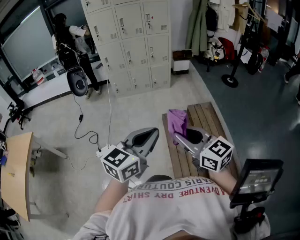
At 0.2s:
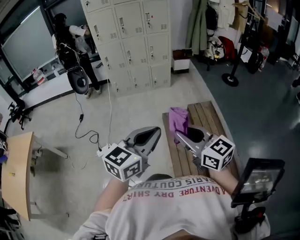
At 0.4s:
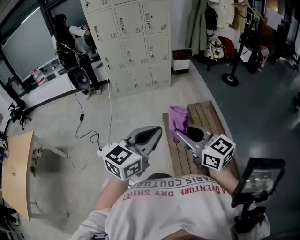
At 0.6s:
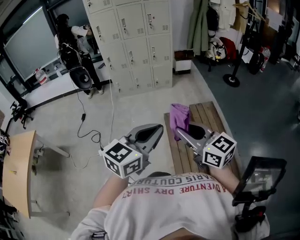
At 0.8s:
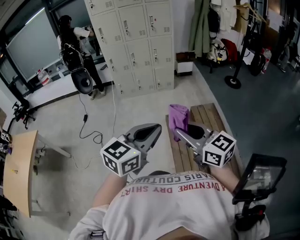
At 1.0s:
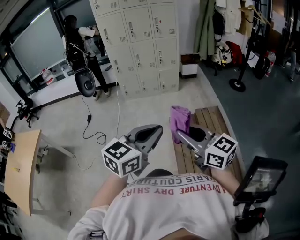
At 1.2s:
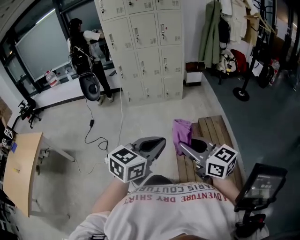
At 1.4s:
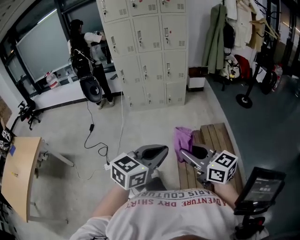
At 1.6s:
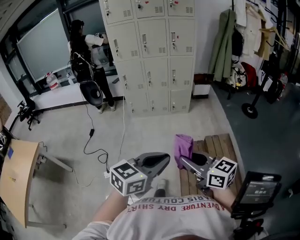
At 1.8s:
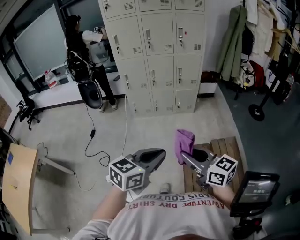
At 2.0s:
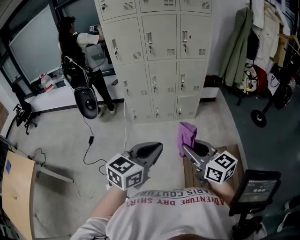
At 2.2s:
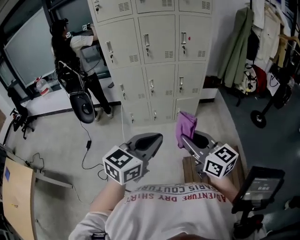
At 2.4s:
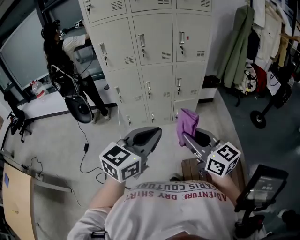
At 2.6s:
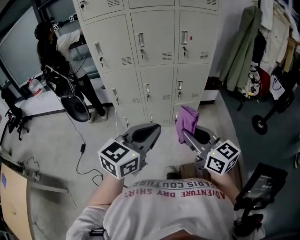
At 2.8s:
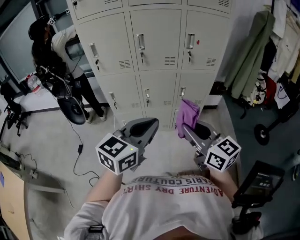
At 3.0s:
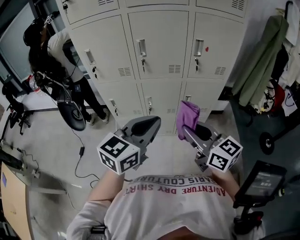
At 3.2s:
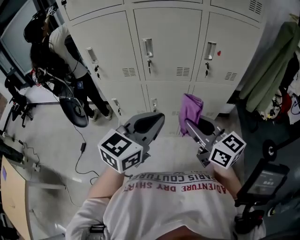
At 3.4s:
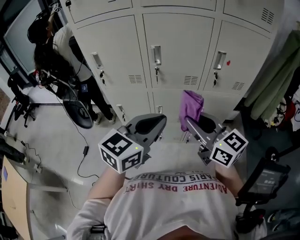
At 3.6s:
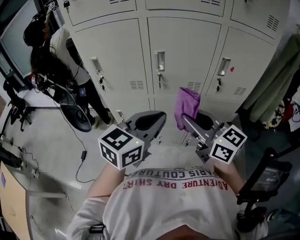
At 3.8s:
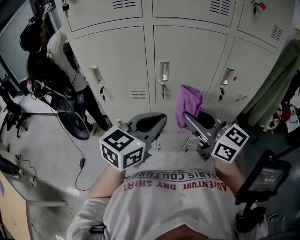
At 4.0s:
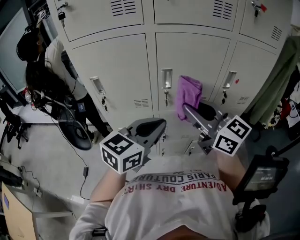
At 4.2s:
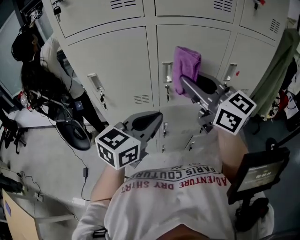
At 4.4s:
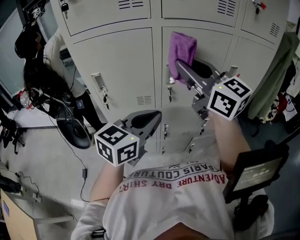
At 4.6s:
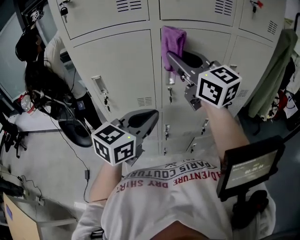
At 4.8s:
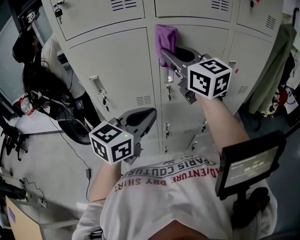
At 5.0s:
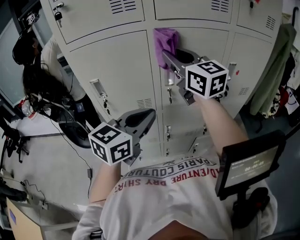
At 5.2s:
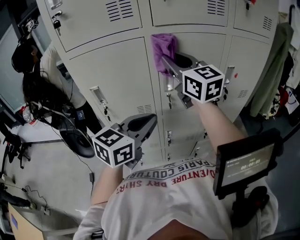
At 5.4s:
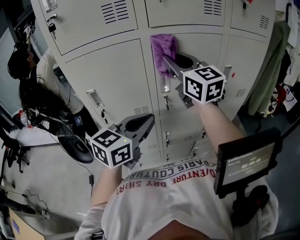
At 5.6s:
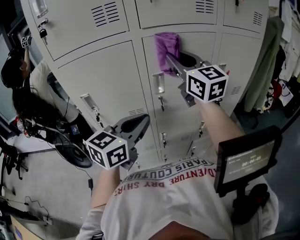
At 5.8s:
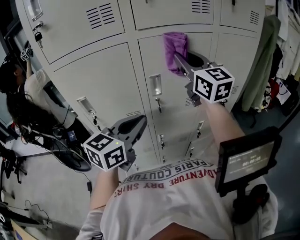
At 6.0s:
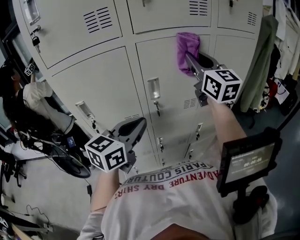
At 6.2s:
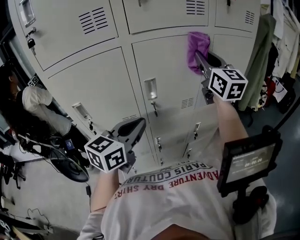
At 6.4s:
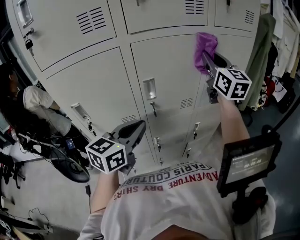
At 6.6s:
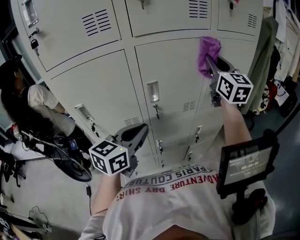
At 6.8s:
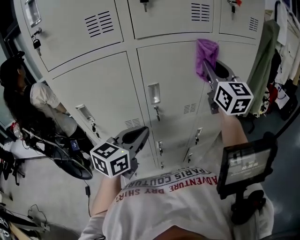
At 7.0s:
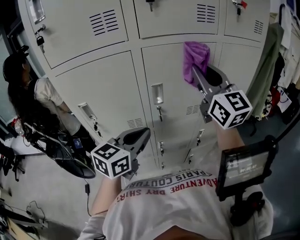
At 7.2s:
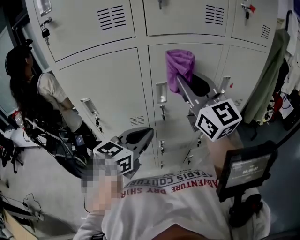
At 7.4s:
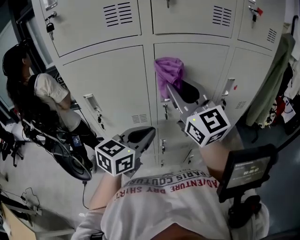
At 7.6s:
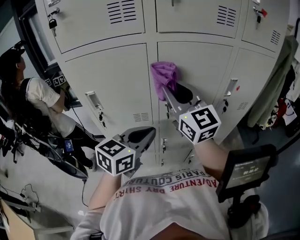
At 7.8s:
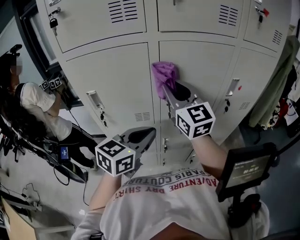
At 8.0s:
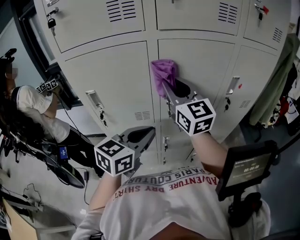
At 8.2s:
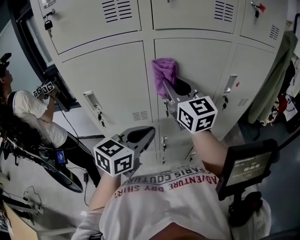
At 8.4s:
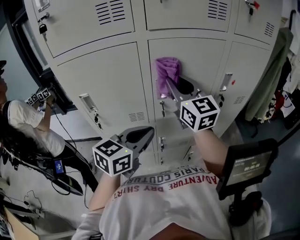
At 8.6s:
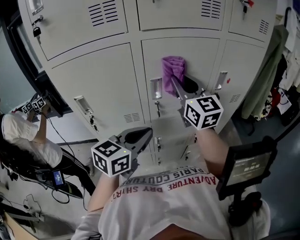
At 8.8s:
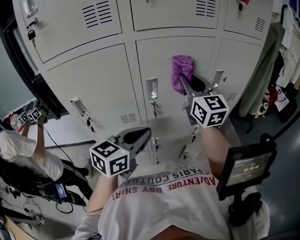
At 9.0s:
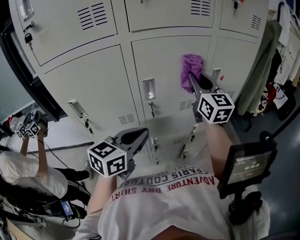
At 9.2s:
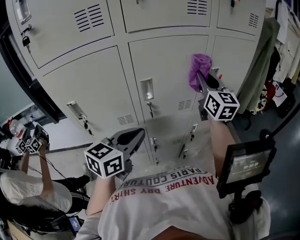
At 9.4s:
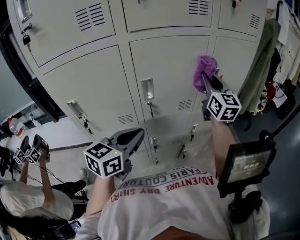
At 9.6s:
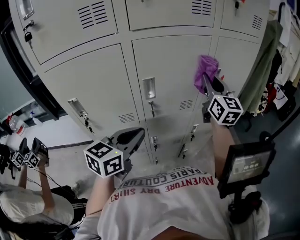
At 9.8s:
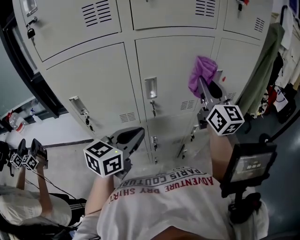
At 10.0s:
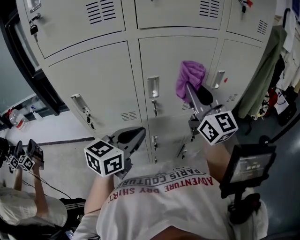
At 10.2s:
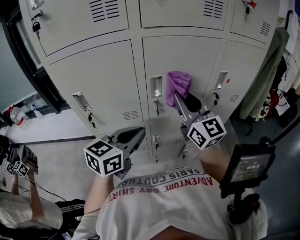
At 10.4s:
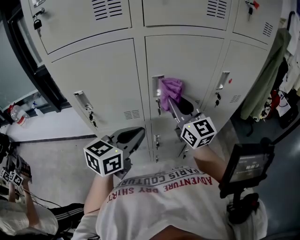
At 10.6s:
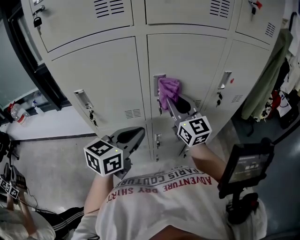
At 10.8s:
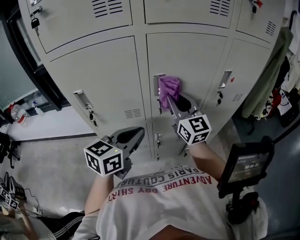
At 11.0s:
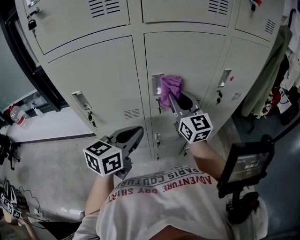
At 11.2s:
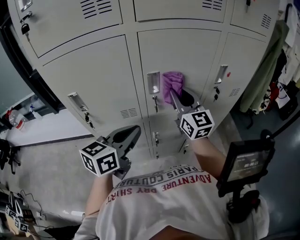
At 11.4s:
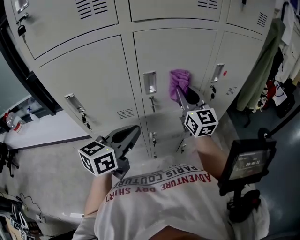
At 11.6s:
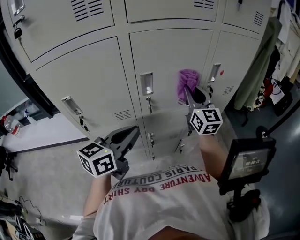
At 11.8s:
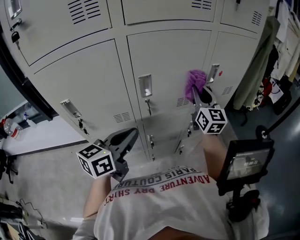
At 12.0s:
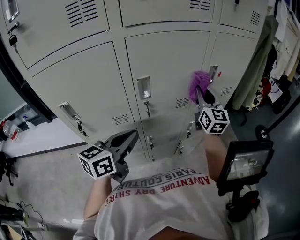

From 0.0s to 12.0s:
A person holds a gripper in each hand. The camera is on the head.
From 0.0s to 1.6s: The two grippers go approximately 15 cm forward.
From 1.6s to 3.0s: The two grippers travel together, forward, some 80 cm.
From 3.0s to 4.4s: The left gripper goes some 25 cm forward and to the left. Meanwhile the right gripper moves forward, upward and to the left, some 40 cm, and swivels about 20 degrees.
From 4.4s to 6.0s: The right gripper goes about 15 cm forward and to the right, and swivels approximately 30 degrees. Meanwhile the left gripper goes about 5 cm forward.
From 6.0s to 7.6s: The right gripper moves to the left, backward and downward, approximately 15 cm.
From 7.6s to 9.0s: The right gripper travels to the right and forward by some 20 cm, and rotates about 20 degrees.
From 9.0s to 10.4s: The right gripper moves to the left, backward and downward, roughly 15 cm.
From 10.4s to 12.0s: The right gripper goes some 20 cm to the right and forward, and changes its angle by about 30 degrees.

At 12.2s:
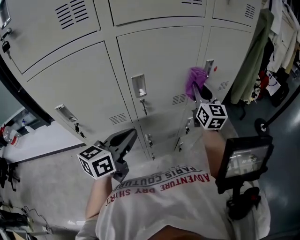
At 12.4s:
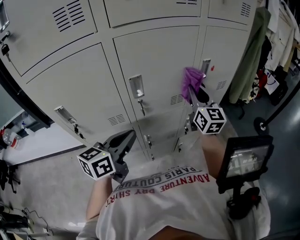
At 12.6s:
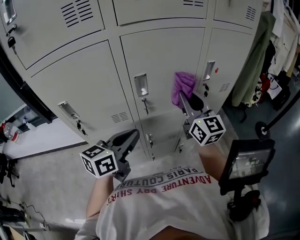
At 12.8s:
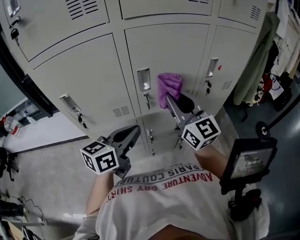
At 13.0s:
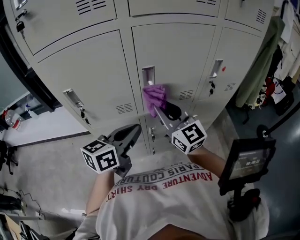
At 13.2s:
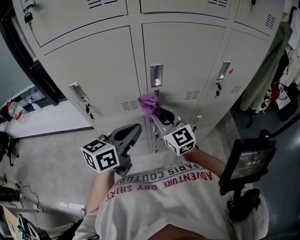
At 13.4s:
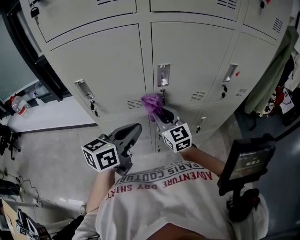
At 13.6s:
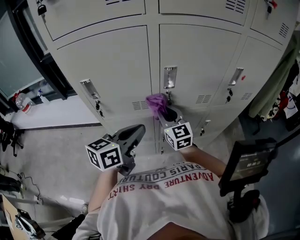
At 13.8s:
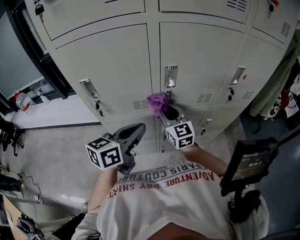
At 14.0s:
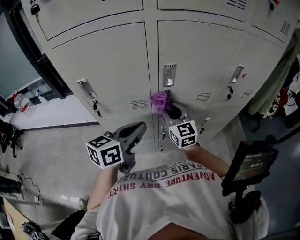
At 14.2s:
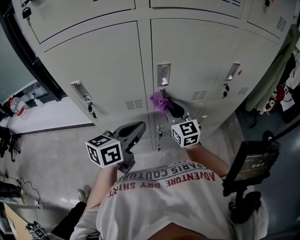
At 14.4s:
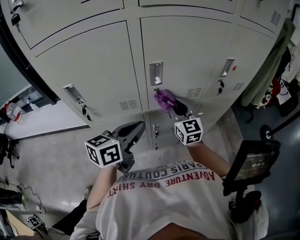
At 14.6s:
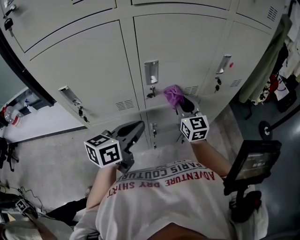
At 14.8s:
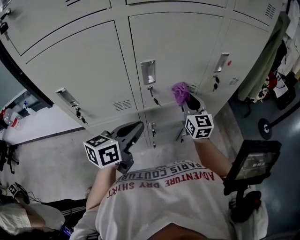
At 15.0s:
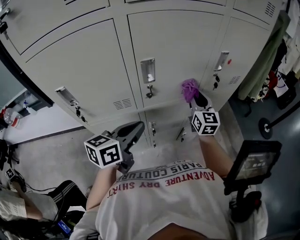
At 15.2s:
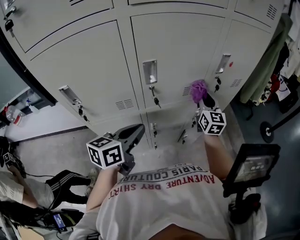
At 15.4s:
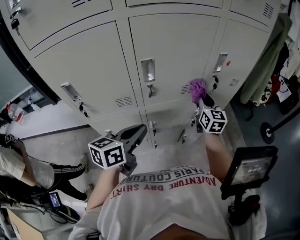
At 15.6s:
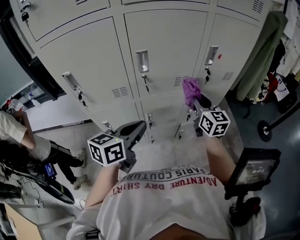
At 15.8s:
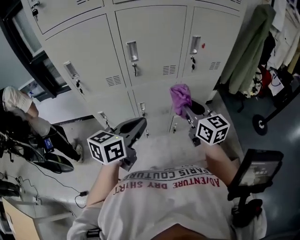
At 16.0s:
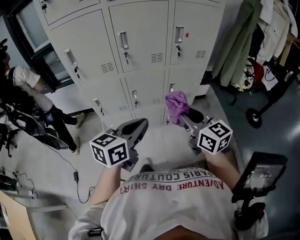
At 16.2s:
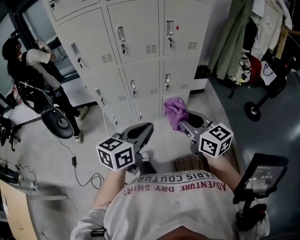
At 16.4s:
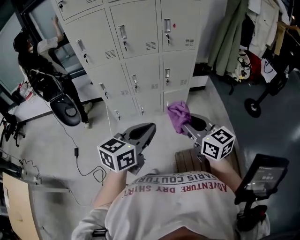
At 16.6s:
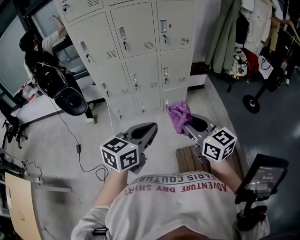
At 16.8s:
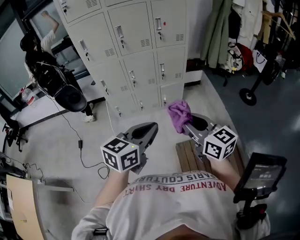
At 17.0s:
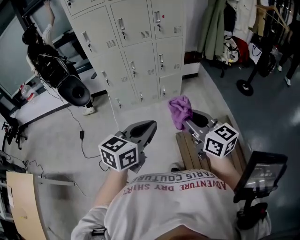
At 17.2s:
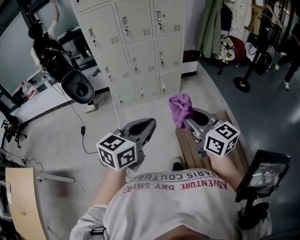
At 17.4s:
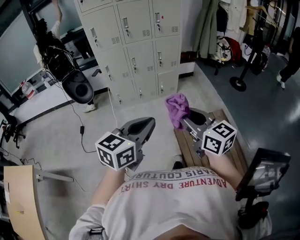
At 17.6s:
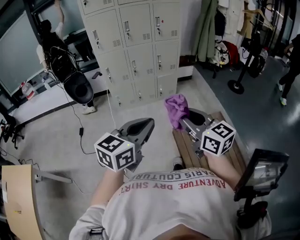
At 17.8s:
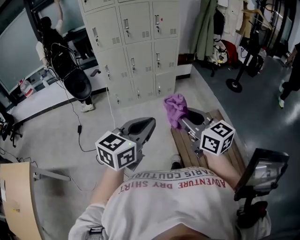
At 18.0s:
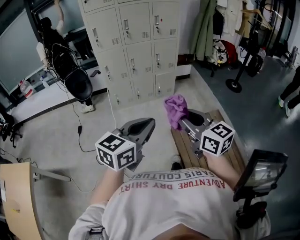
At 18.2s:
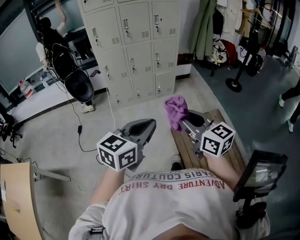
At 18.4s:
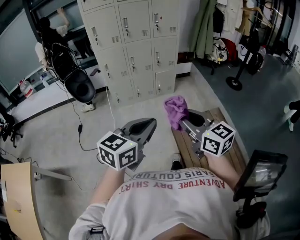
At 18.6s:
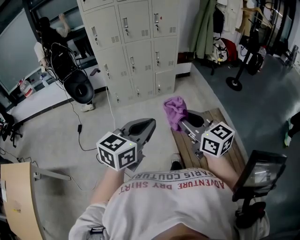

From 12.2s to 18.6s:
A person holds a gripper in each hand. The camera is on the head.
From 12.2s to 13.8s: The left gripper ends up about 5 cm from where it was, while the right gripper shifts about 30 cm to the left and downward, and turns by some 30 degrees.
From 13.8s to 15.4s: The right gripper shifts some 25 cm to the right, and turns by about 30 degrees, while the left gripper is displaced to the right by roughly 5 cm.
From 15.4s to 17.0s: The pair of grippers is taken backward, some 80 cm. The right gripper changes its angle by approximately 30 degrees.
From 17.0s to 18.6s: The two grippers go about 20 cm backward.

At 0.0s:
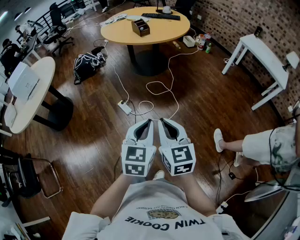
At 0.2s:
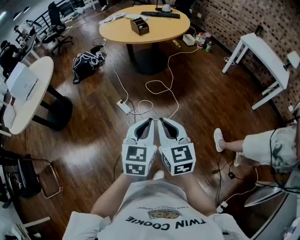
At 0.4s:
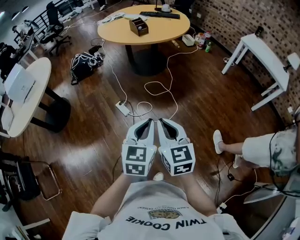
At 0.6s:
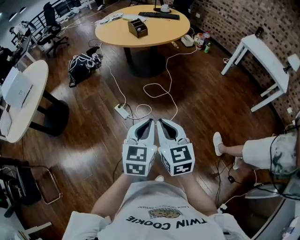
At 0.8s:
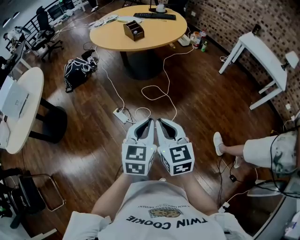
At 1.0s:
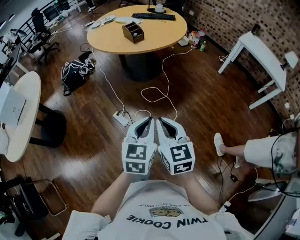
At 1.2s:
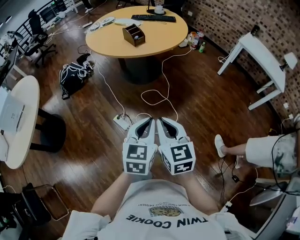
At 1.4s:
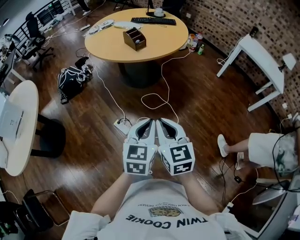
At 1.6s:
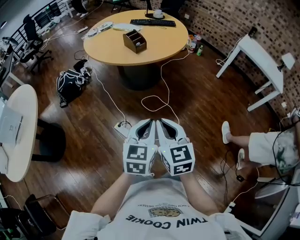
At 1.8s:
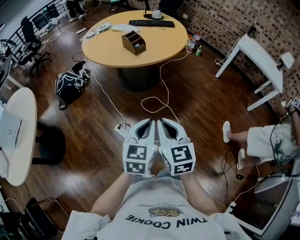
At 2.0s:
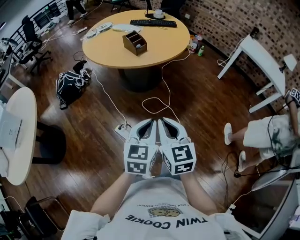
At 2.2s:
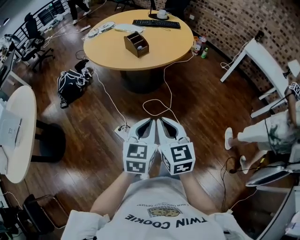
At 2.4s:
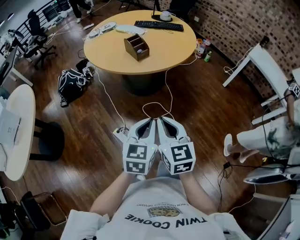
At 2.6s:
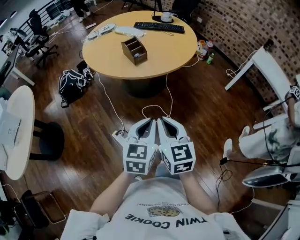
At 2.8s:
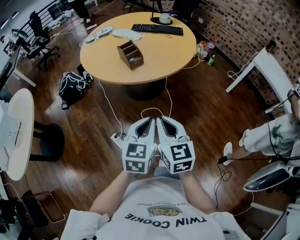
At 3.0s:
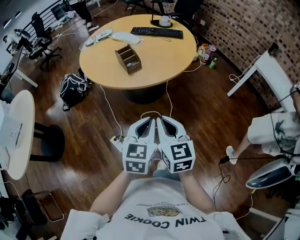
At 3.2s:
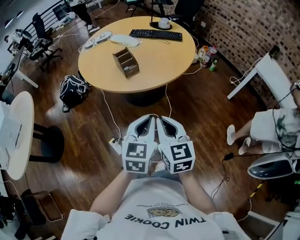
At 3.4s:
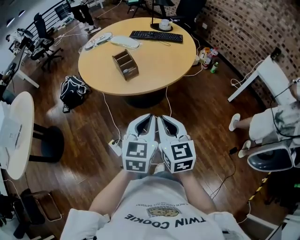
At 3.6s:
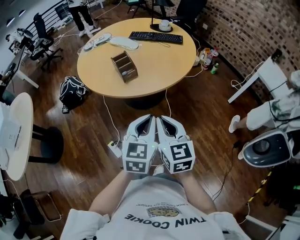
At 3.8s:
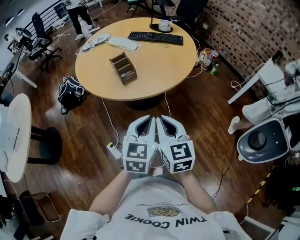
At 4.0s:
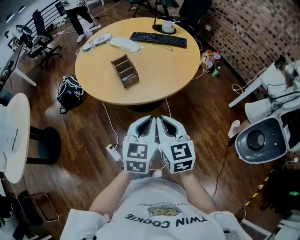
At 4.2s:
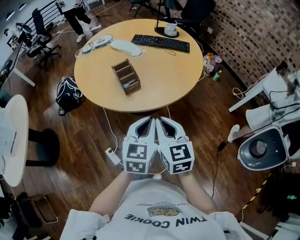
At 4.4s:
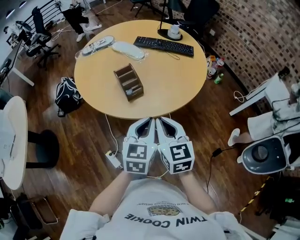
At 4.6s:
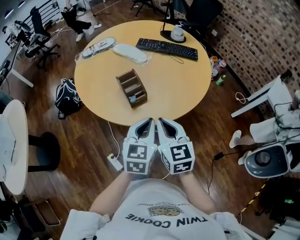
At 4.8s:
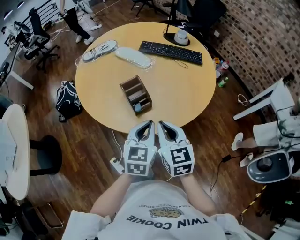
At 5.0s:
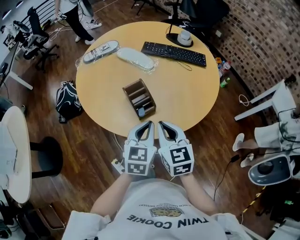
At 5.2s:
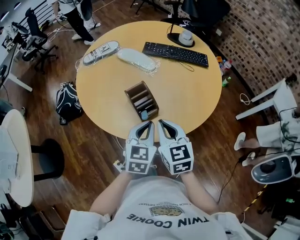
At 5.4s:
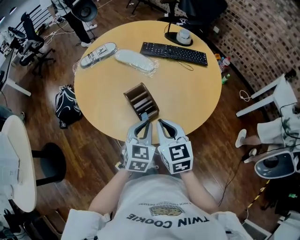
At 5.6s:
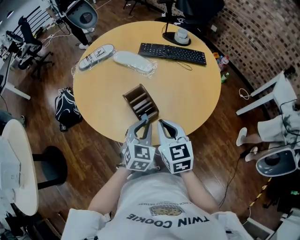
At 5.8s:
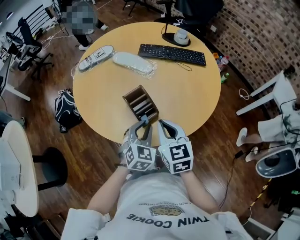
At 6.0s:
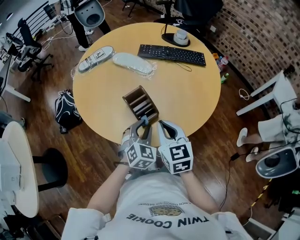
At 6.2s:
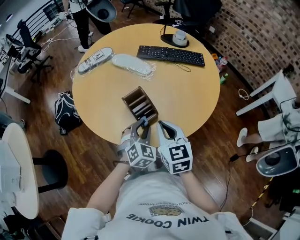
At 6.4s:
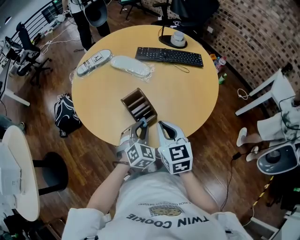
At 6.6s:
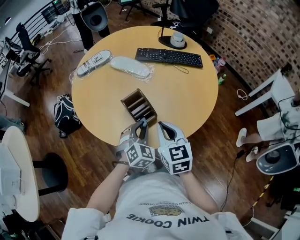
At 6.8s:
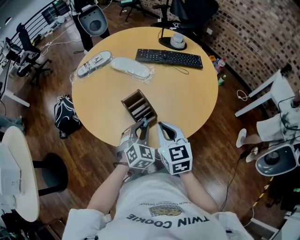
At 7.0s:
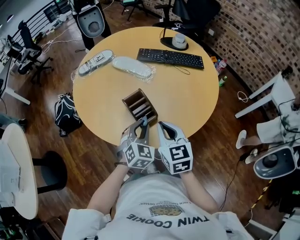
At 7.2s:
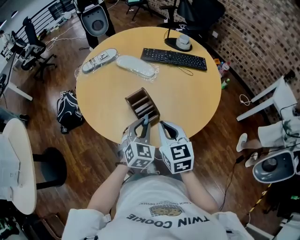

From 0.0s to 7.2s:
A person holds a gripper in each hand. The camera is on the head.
From 0.0s to 1.4s: The grippers both shift forward by roughly 25 cm.
From 1.4s to 2.8s: The grippers both shift forward by about 25 cm.
From 2.8s to 4.4s: Both grippers travel together forward, some 25 cm.
From 4.4s to 5.8s: The right gripper shifts roughly 20 cm forward and to the left, while the left gripper moves forward, downward and to the left, about 20 cm, changes its angle by about 30 degrees, and opens up.
From 5.8s to 7.2s: The grippers make only small movements.
